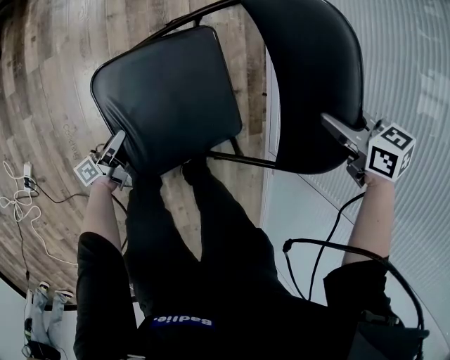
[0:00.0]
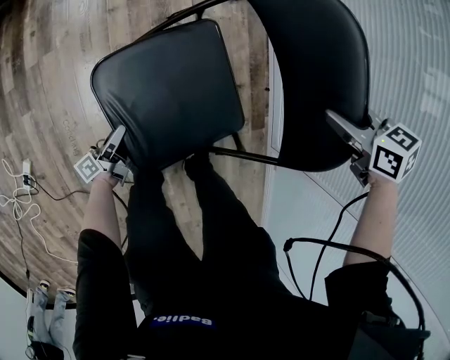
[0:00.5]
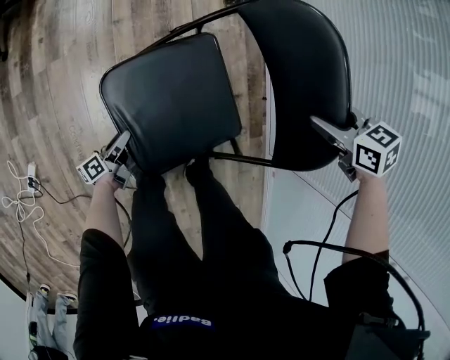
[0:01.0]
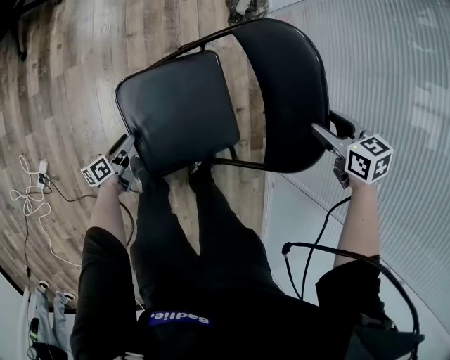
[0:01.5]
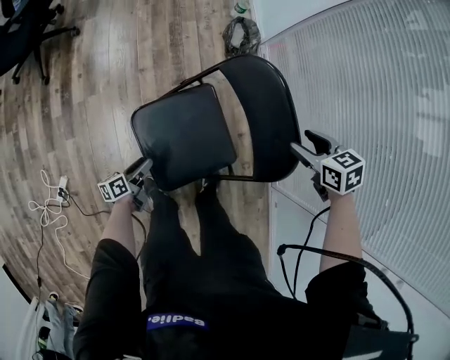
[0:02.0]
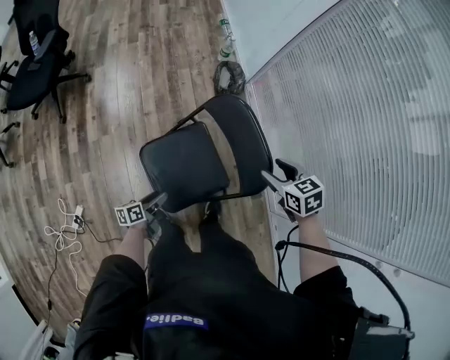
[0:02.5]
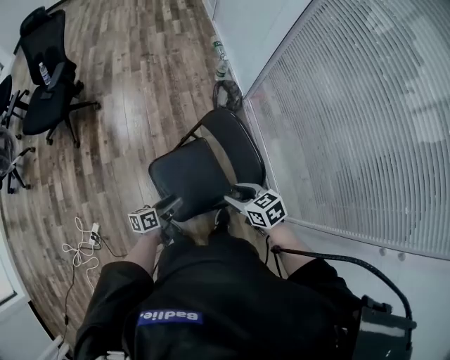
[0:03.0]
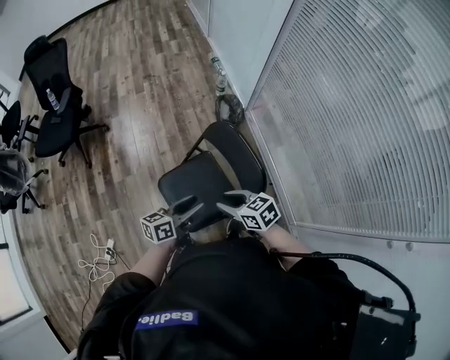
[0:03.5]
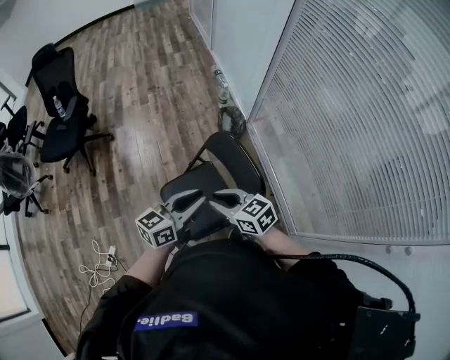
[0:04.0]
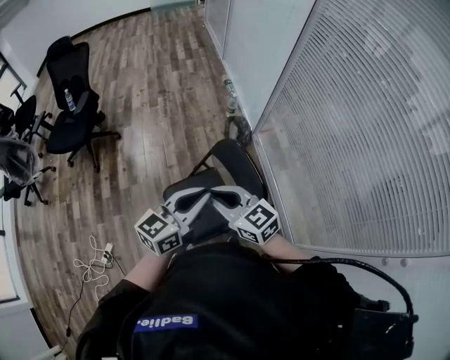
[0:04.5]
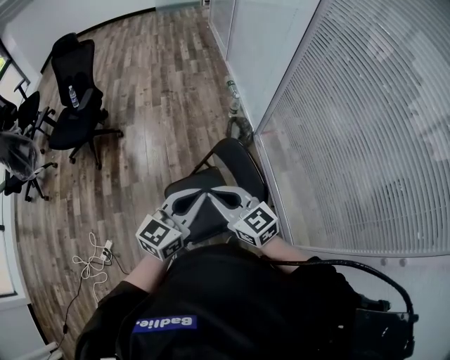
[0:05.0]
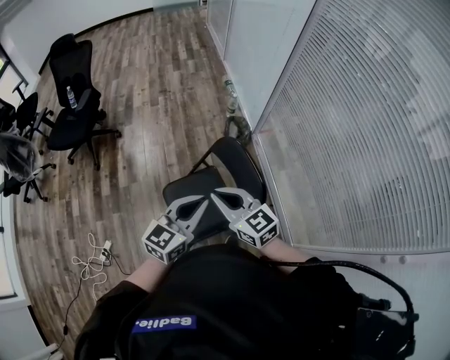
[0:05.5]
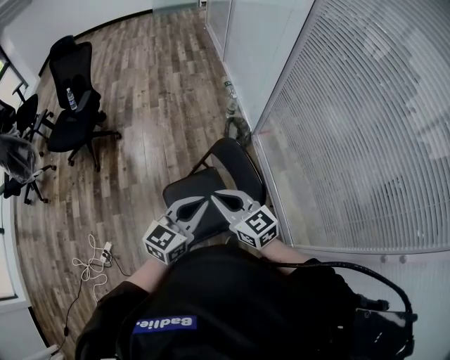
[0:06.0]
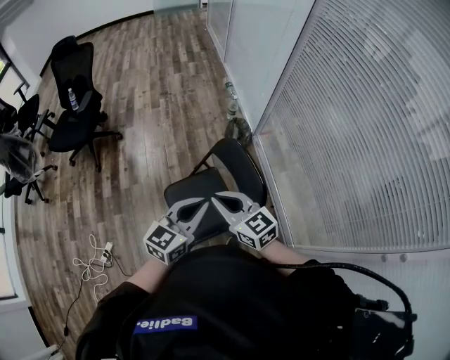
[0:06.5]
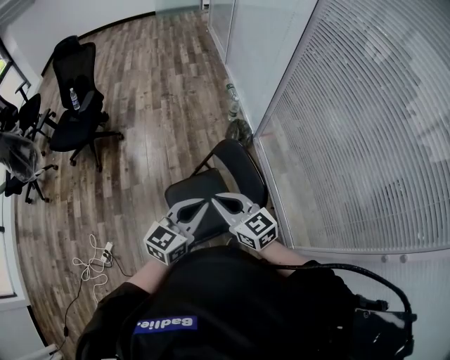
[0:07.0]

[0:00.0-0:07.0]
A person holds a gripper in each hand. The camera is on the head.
0:00.0 to 0:02.0: Both grippers move upward, roughly 15 cm. The left gripper changes its angle by roughly 20 degrees. The right gripper opens up.
0:02.0 to 0:03.5: The right gripper moves backward, to the left and upward, some 25 cm, rotates roughly 30 degrees, and closes up; the left gripper goes about 40 cm upward and to the right, and changes its angle by roughly 40 degrees.
0:03.5 to 0:05.0: Both grippers move upward, approximately 20 cm. The right gripper rotates about 30 degrees, and closes up. Meanwhile the left gripper turns by roughly 40 degrees, and closes.
0:05.0 to 0:07.0: The grippers stay close to where they were, moving slightly.

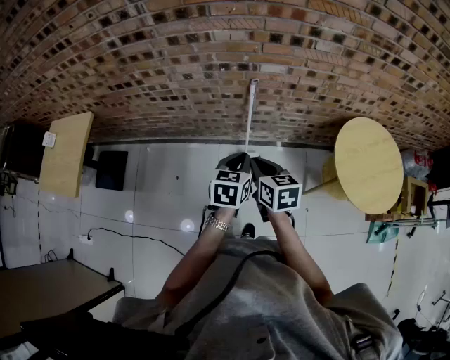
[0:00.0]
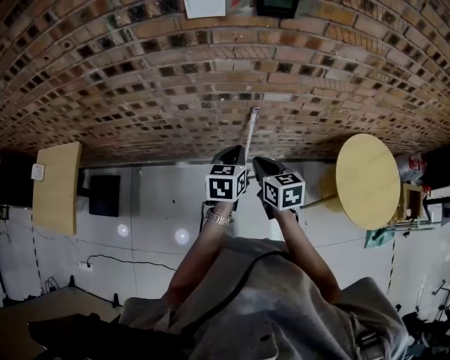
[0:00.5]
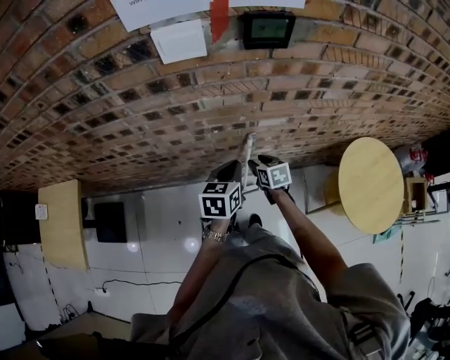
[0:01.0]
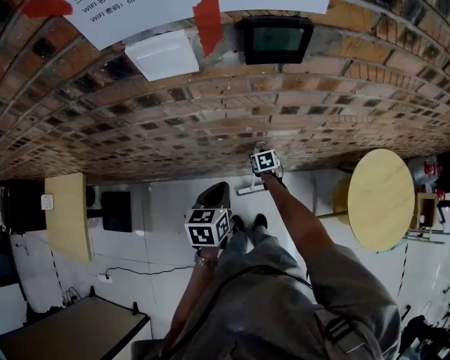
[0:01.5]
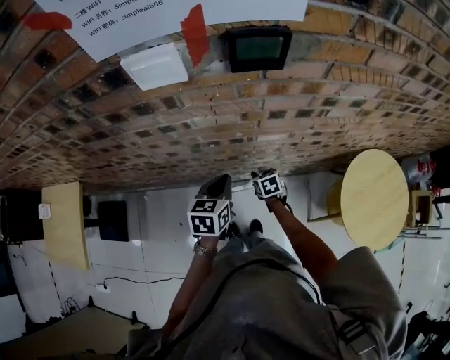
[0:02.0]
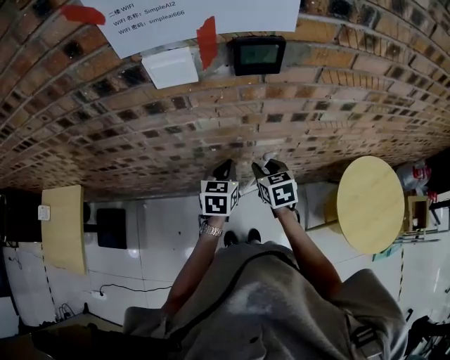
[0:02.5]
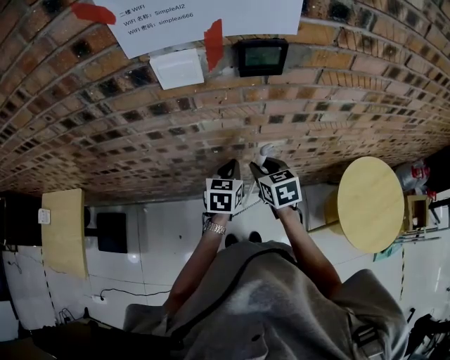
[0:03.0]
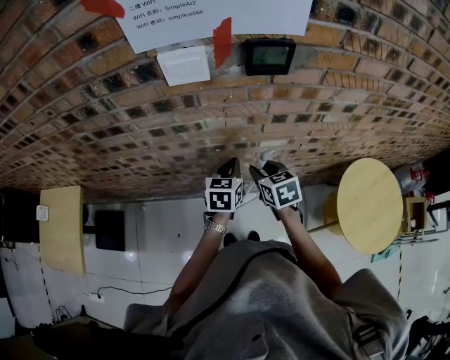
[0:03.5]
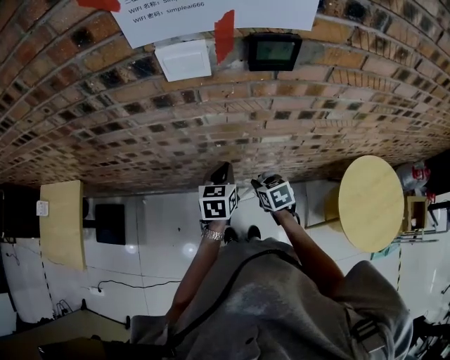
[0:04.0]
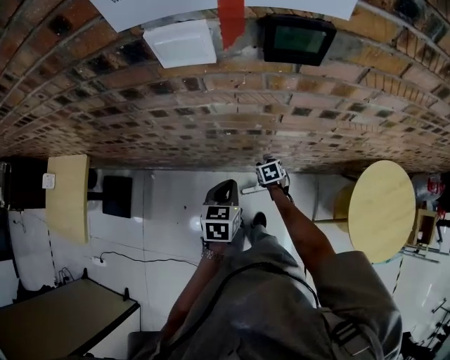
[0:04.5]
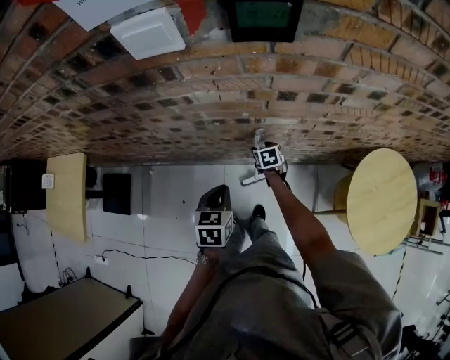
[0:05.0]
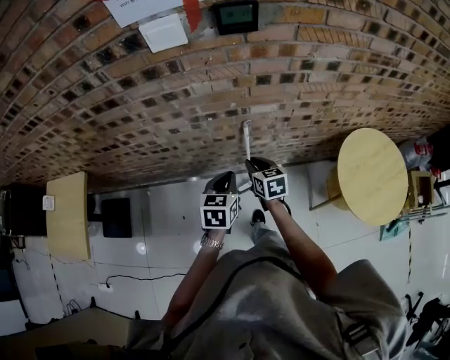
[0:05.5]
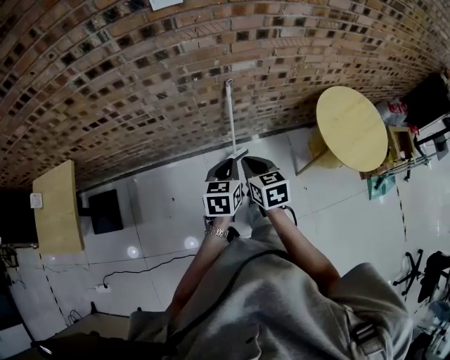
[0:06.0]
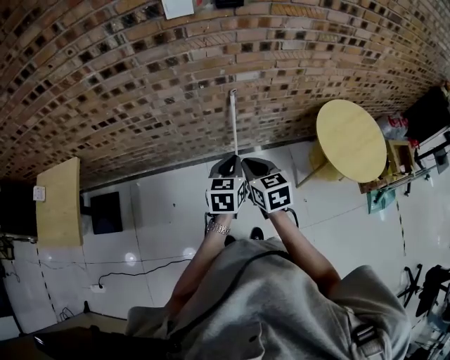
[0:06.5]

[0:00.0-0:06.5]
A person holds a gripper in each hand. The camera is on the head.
0:00.0 to 0:02.0: The right gripper goes about 40 cm forward and downward, turns by about 20 degrees, and opens up, while the left gripper heads forward, covering about 30 cm.
0:02.0 to 0:04.5: The right gripper reaches about 25 cm upward, then returns; the left gripper shifts by roughly 5 cm.
0:04.5 to 0:06.5: The left gripper shifts approximately 25 cm backward. The right gripper shifts approximately 50 cm backward and upward, turns by roughly 30 degrees, and closes its fingers.

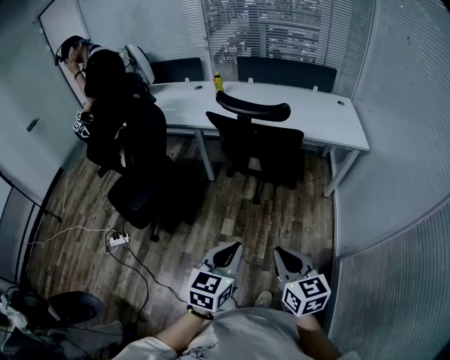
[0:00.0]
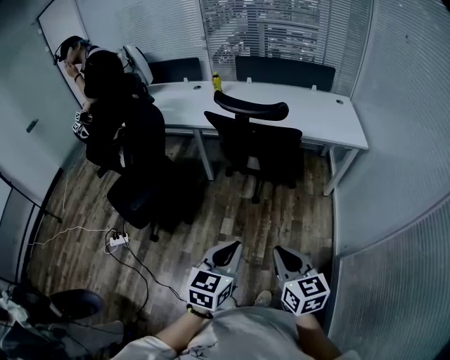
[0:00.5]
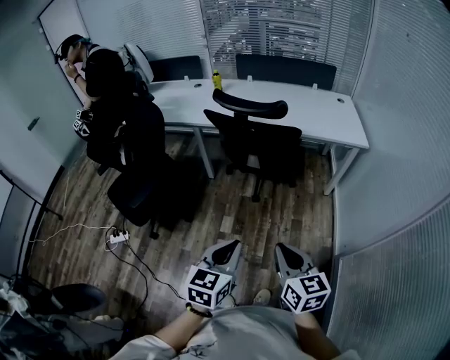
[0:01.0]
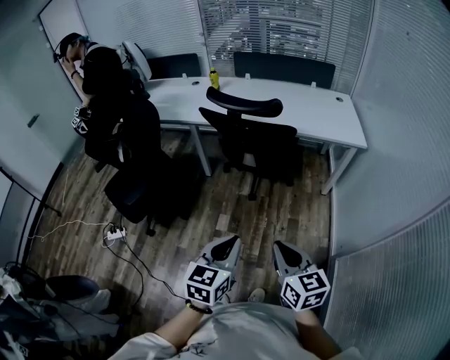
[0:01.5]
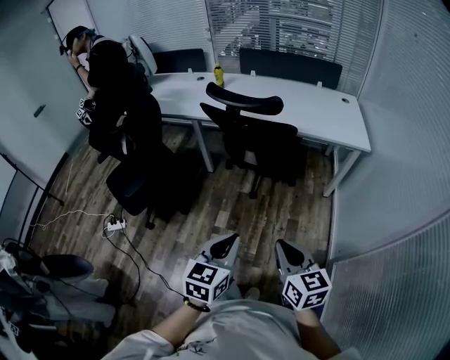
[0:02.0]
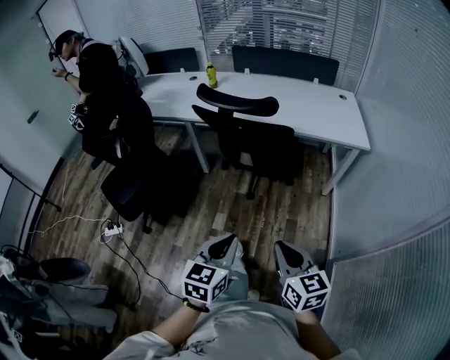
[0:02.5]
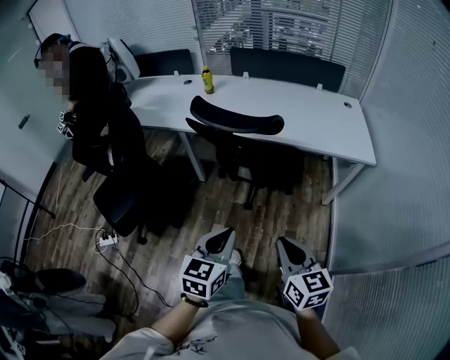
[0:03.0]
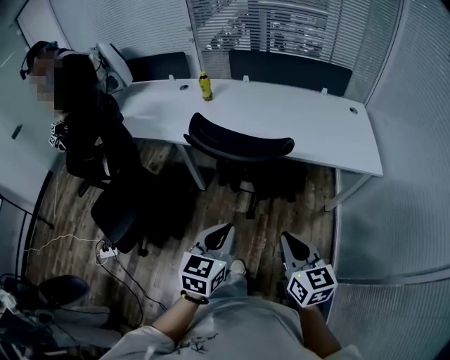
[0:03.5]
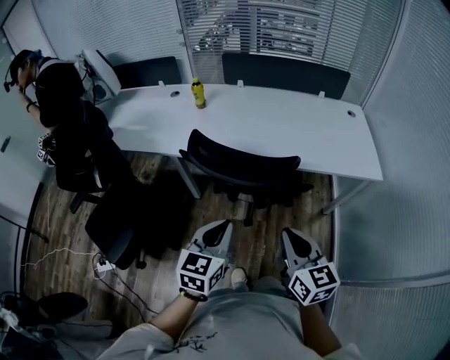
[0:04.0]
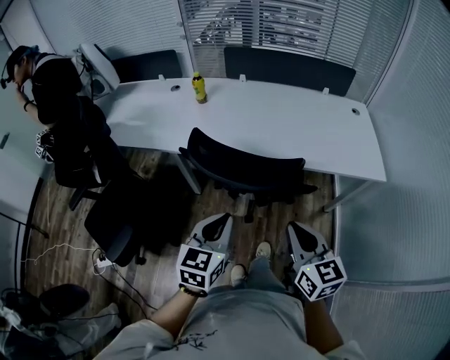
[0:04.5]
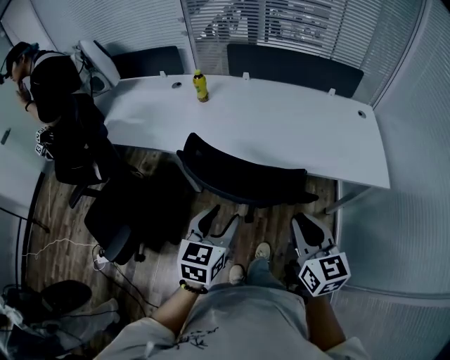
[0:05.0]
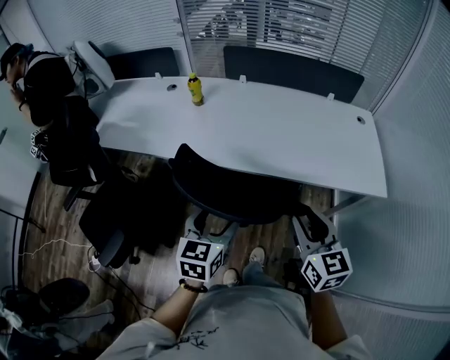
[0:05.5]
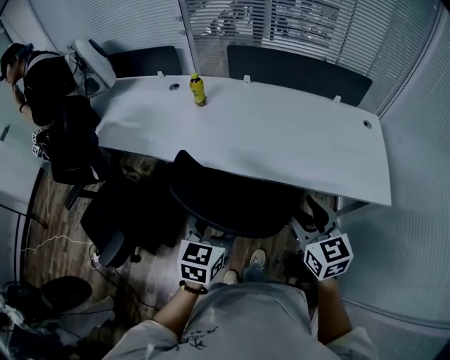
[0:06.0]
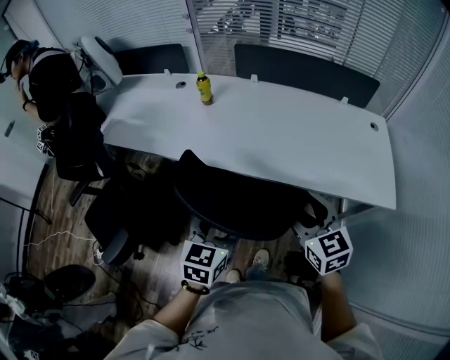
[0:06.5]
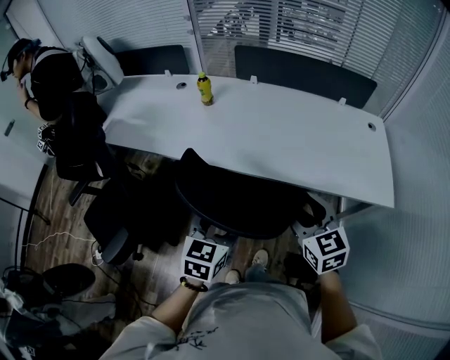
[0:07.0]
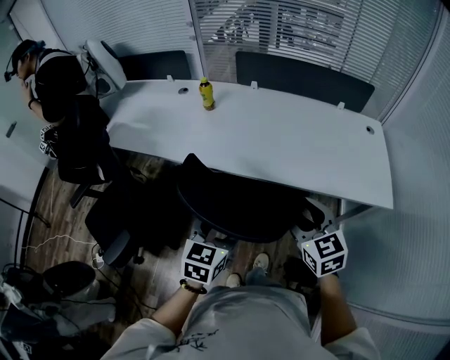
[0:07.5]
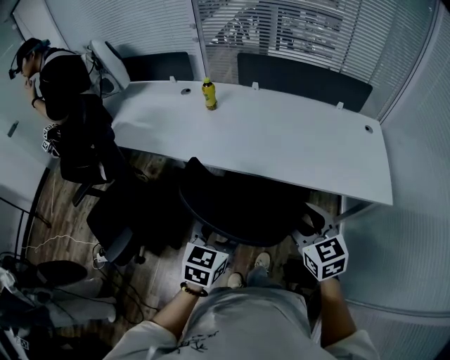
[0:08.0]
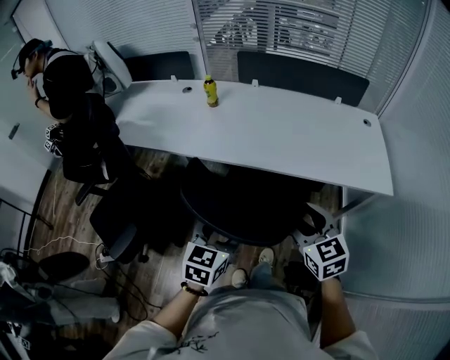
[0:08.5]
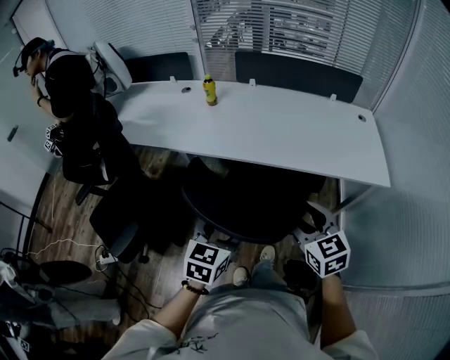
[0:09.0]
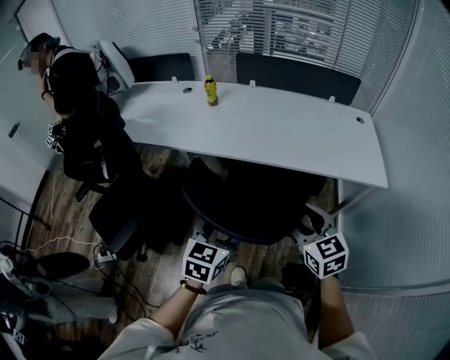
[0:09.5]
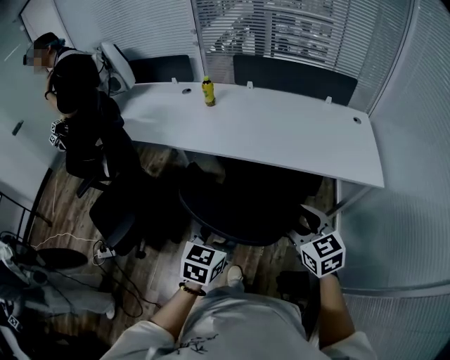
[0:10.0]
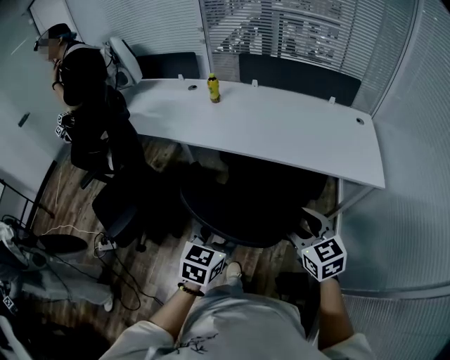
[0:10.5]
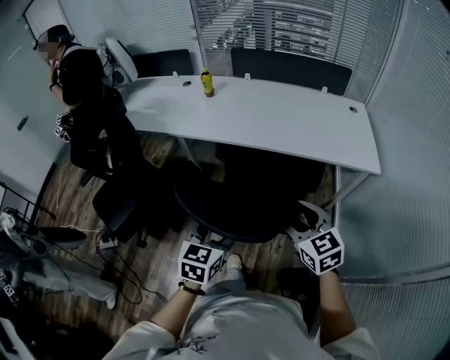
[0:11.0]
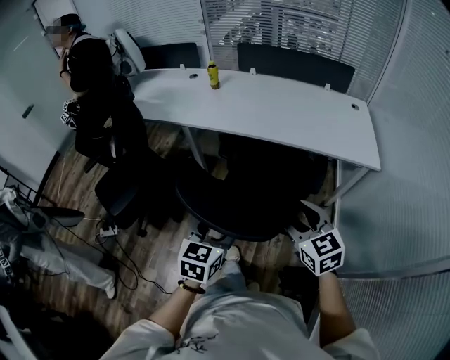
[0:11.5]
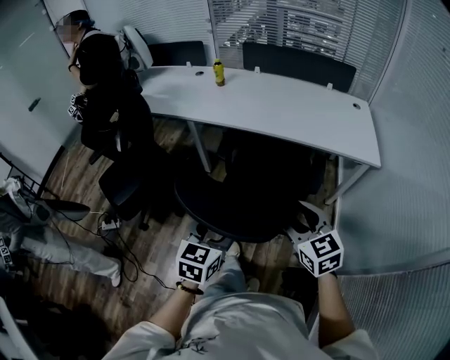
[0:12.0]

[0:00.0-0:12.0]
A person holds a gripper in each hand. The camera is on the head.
0:00.0 to 0:02.0: The two grippers go about 10 cm to the right.
0:02.0 to 0:04.0: The grippers both shift forward by some 35 cm.
0:04.0 to 0:06.0: The two grippers go roughly 15 cm forward. The left gripper opens up. The right gripper opens up.
0:06.0 to 0:08.0: The grippers both shift backward by some 5 cm.
0:08.0 to 0:10.0: The grippers both shift backward by approximately 10 cm.
0:10.0 to 0:12.0: Both grippers move backward, approximately 20 cm.

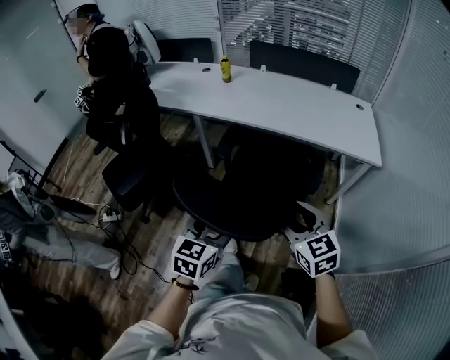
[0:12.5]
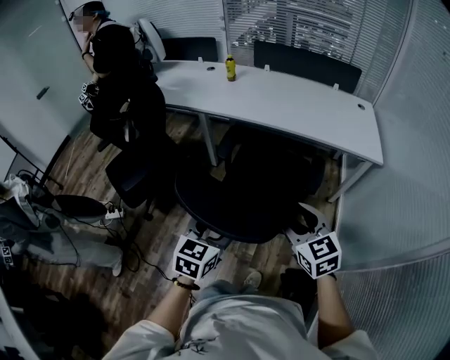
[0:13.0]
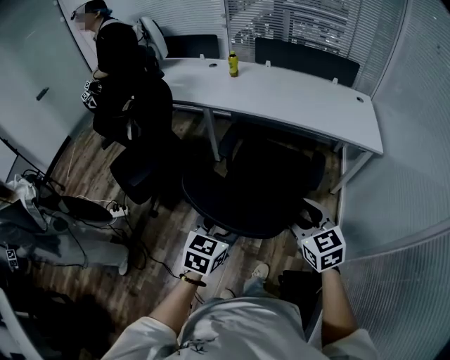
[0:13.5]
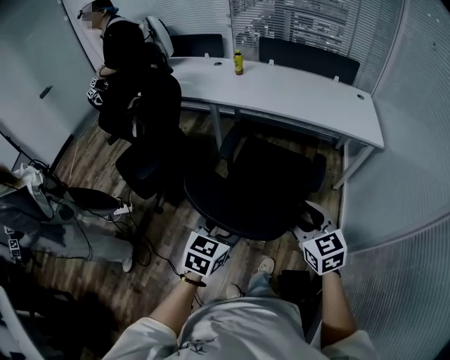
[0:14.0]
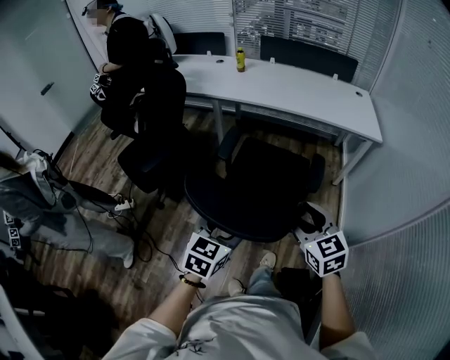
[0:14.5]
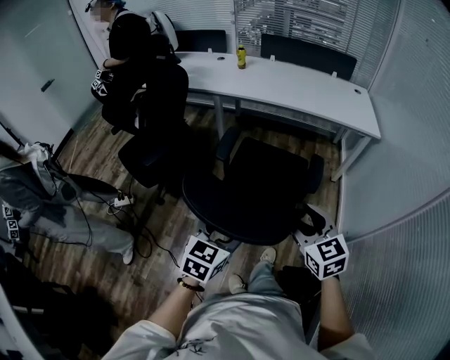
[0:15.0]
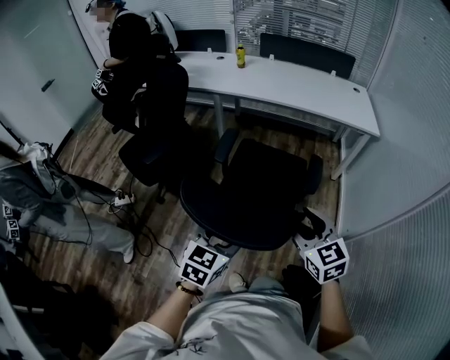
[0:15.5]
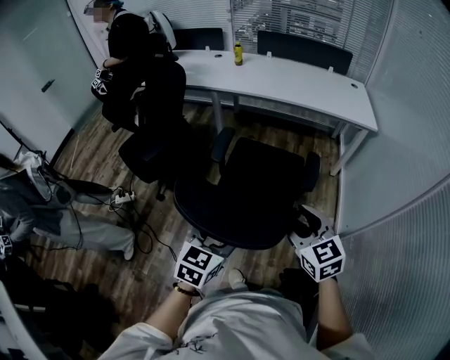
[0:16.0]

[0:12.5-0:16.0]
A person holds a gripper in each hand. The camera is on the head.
0:12.5 to 0:14.5: Both grippers move backward and to the left, about 20 cm.
0:14.5 to 0:16.0: Both grippers travel together backward, roughly 10 cm.
